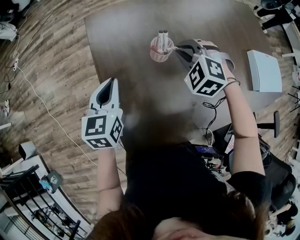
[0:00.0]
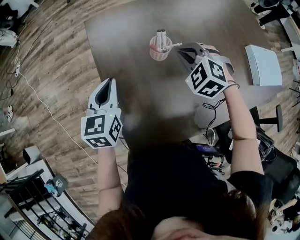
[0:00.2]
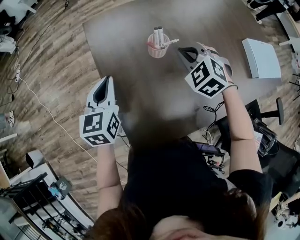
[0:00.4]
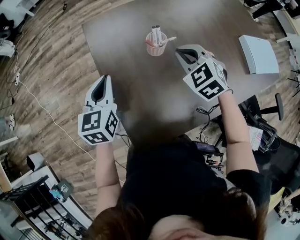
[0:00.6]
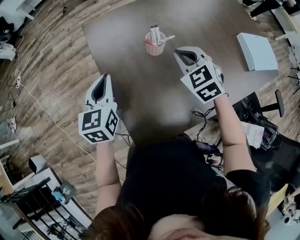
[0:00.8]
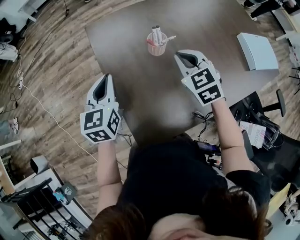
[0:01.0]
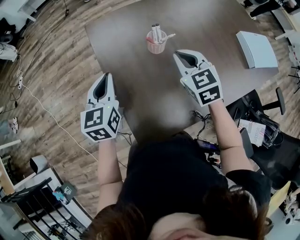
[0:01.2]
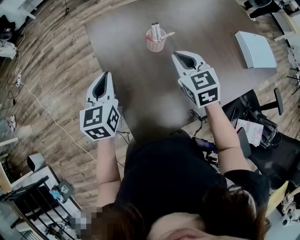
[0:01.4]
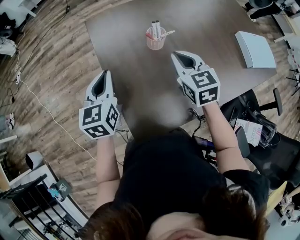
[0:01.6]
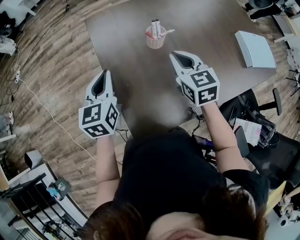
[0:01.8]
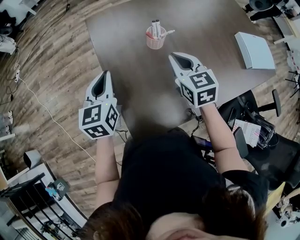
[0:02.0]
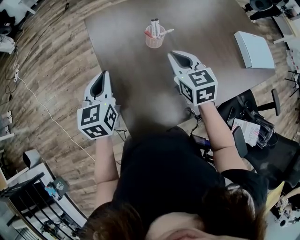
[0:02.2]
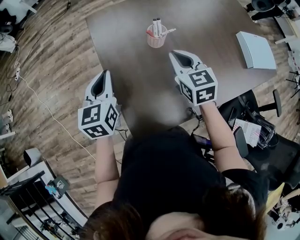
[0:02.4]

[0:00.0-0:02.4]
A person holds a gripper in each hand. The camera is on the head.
0:00.0 to 0:01.2: The left gripper shifts by roughly 5 cm. Meanwhile the right gripper goes roughly 10 cm backward and upward, and rolls clockwise, seen from behind, by some 50 degrees.
0:01.2 to 0:02.4: The grippers stay close to where they were, moving slightly.

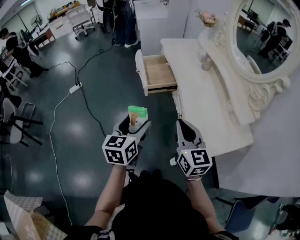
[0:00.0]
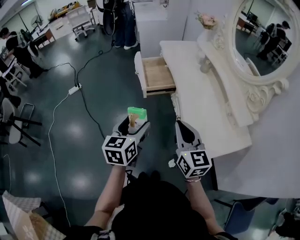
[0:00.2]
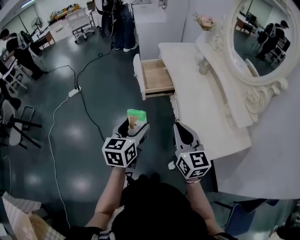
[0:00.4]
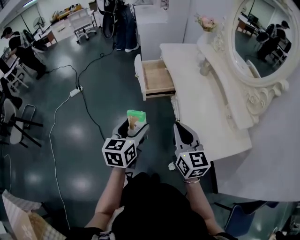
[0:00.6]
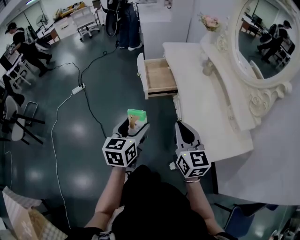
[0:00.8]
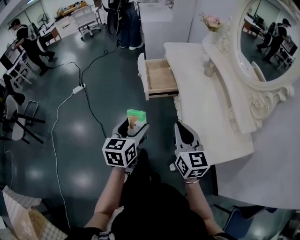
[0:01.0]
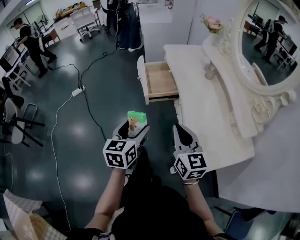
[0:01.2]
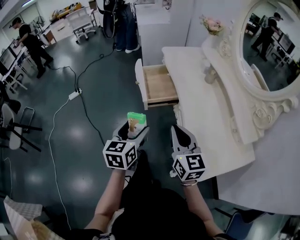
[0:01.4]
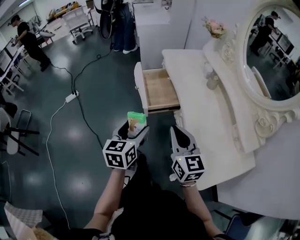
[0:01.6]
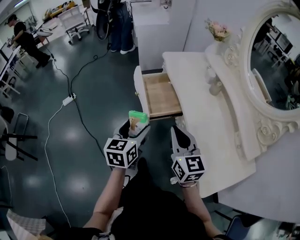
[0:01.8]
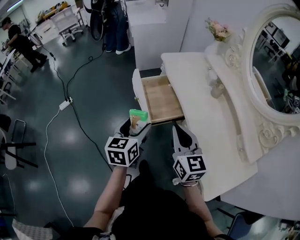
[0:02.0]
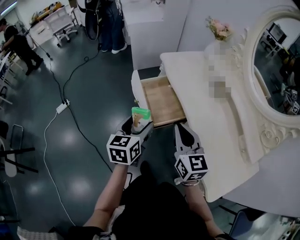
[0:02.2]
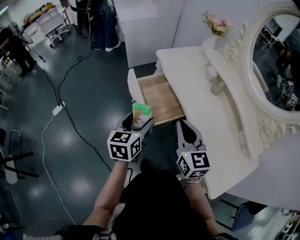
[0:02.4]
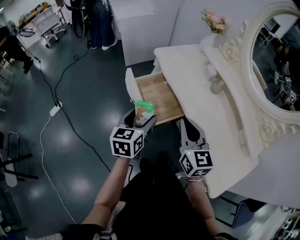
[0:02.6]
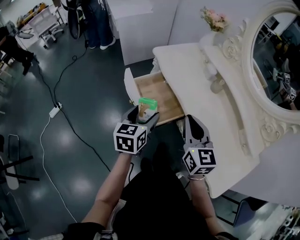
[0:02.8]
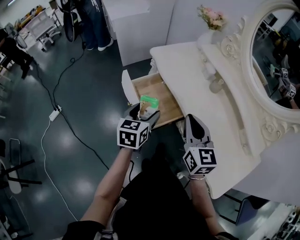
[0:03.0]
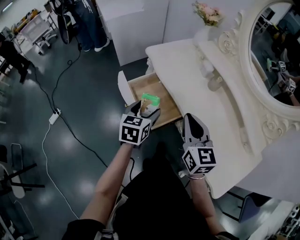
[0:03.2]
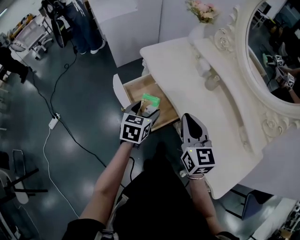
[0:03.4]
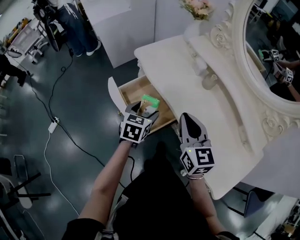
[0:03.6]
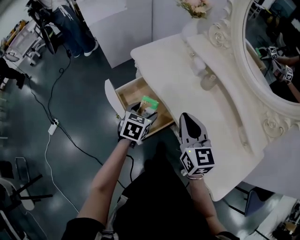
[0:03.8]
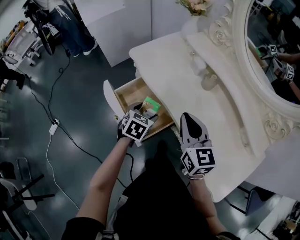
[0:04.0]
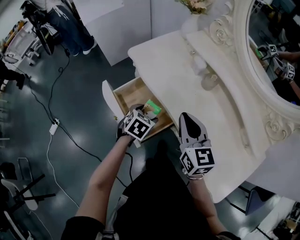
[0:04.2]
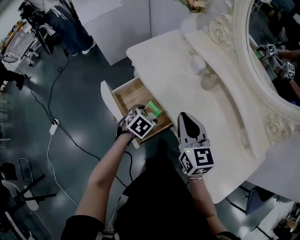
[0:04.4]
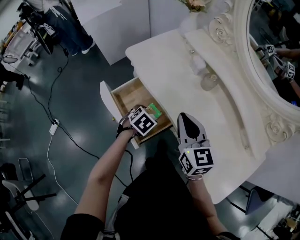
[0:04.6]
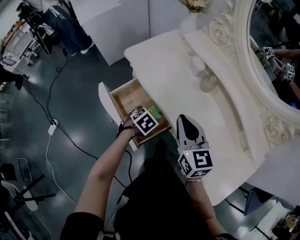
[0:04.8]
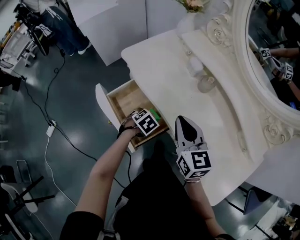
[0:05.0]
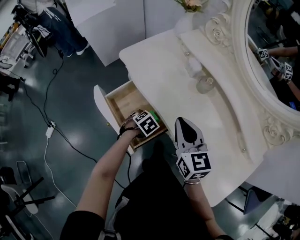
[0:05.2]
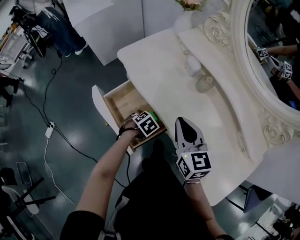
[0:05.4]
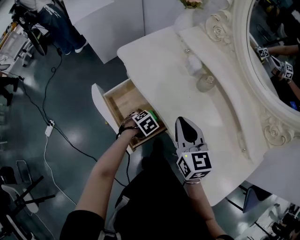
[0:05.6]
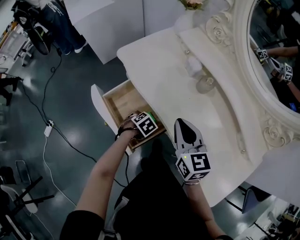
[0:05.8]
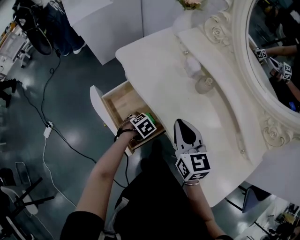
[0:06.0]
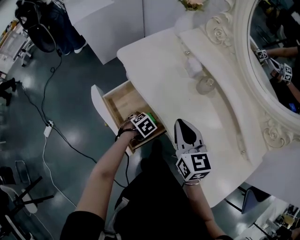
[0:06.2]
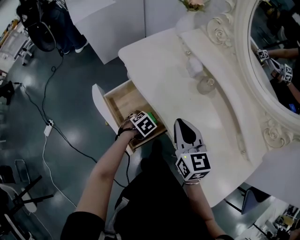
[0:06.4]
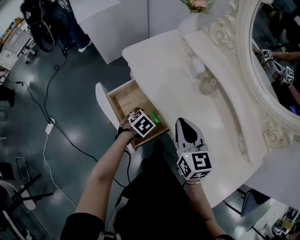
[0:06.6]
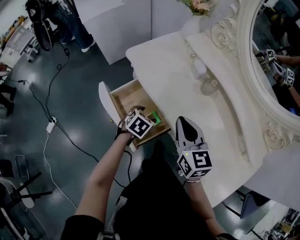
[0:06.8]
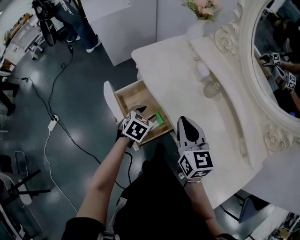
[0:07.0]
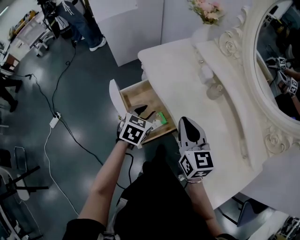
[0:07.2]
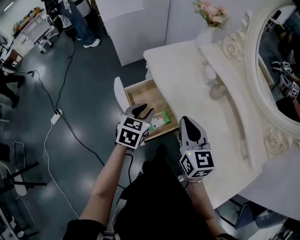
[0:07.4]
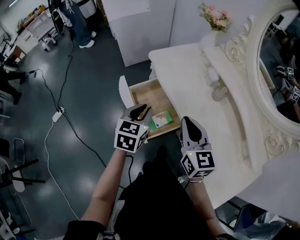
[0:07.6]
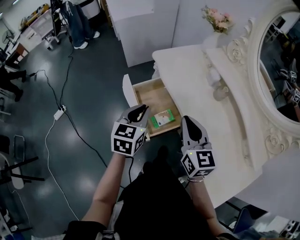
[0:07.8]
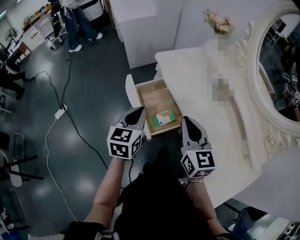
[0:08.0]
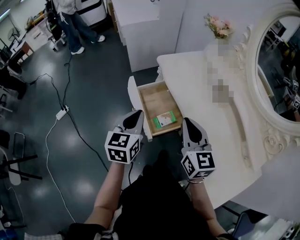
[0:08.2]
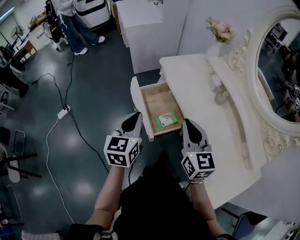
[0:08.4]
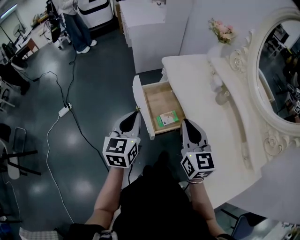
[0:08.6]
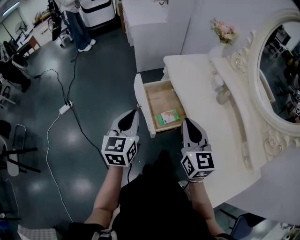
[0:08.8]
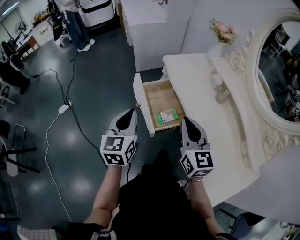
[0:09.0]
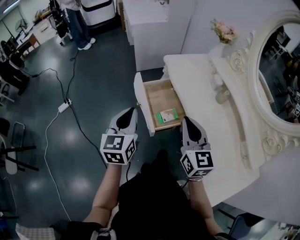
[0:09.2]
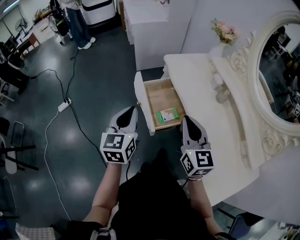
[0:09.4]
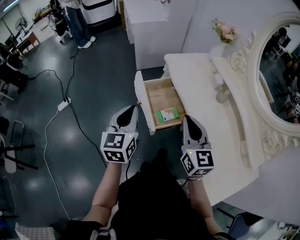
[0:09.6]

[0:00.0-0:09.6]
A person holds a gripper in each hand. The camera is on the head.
0:00.0 to 0:01.6: Both grippers travel together forward, approximately 15 cm.
0:01.6 to 0:03.2: The grippers both shift forward by some 20 cm. The right gripper turns by some 20 degrees. The left gripper swivels about 20 degrees.
0:03.2 to 0:04.8: The right gripper shifts some 10 cm forward; the left gripper moves downward and to the right, about 20 cm, and tips its fingers downward by roughly 40 degrees.
0:04.8 to 0:06.4: The left gripper heads downward, covering about 5 cm.
0:06.4 to 0:08.0: The right gripper ends up roughly 10 cm from where it was. The left gripper shifts about 30 cm upward, tips its fingers upward by roughly 50 degrees, and closes its fingers.
0:08.0 to 0:09.6: The right gripper changes place by some 5 cm. Meanwhile the left gripper shifts some 10 cm to the left and backward.

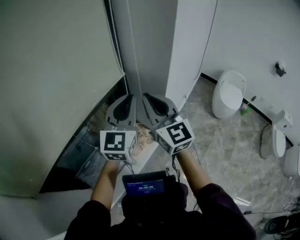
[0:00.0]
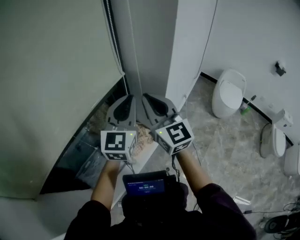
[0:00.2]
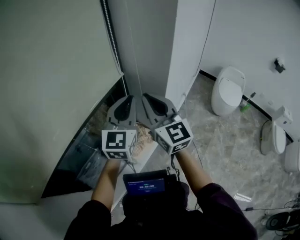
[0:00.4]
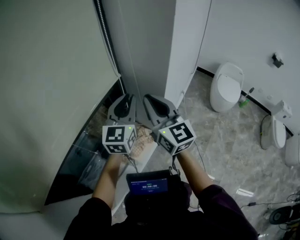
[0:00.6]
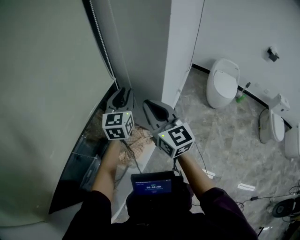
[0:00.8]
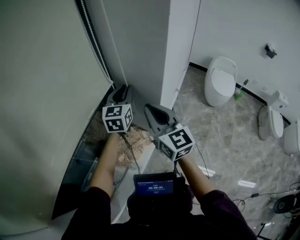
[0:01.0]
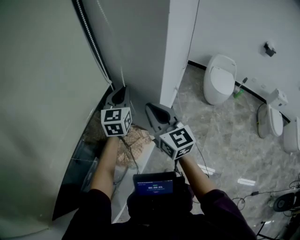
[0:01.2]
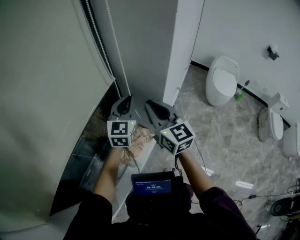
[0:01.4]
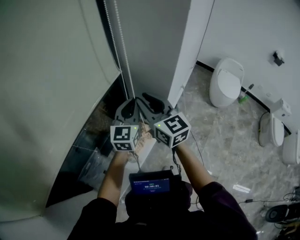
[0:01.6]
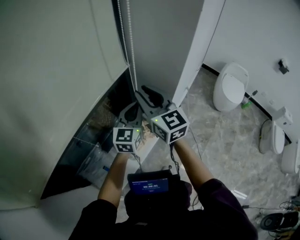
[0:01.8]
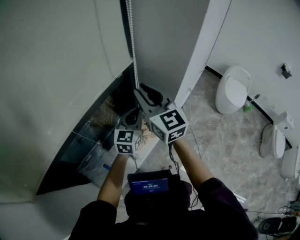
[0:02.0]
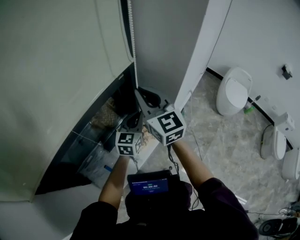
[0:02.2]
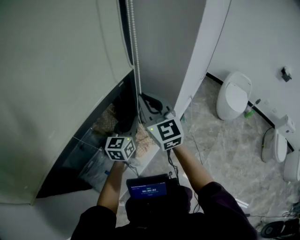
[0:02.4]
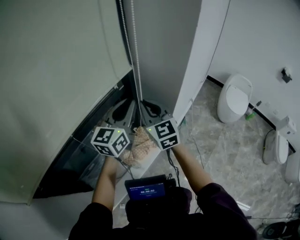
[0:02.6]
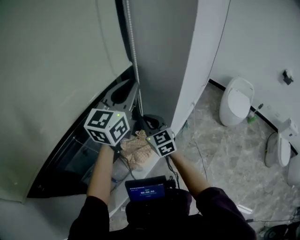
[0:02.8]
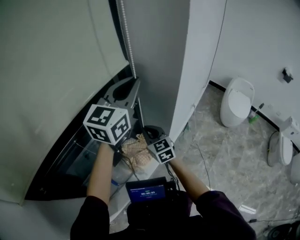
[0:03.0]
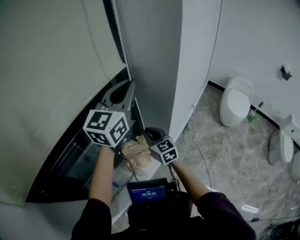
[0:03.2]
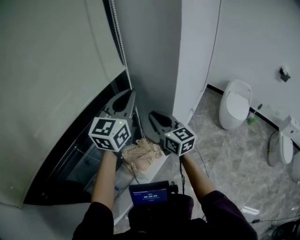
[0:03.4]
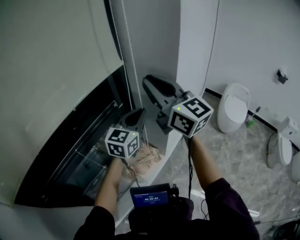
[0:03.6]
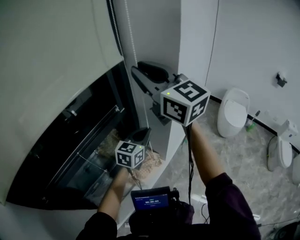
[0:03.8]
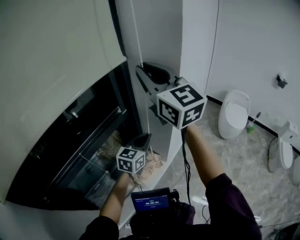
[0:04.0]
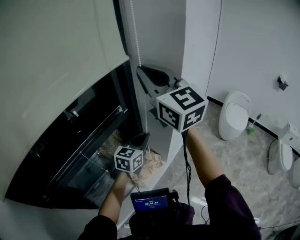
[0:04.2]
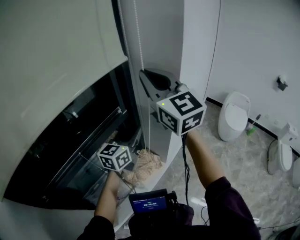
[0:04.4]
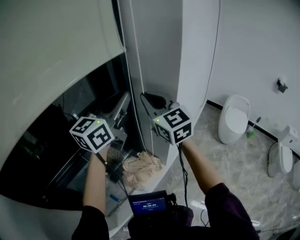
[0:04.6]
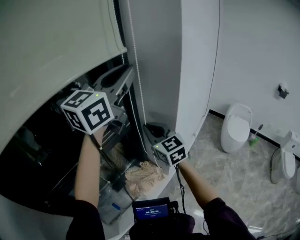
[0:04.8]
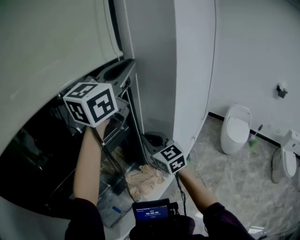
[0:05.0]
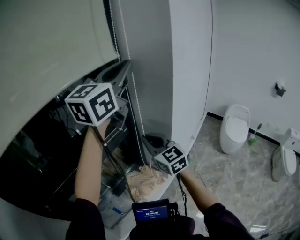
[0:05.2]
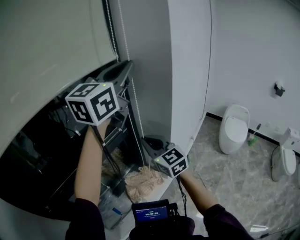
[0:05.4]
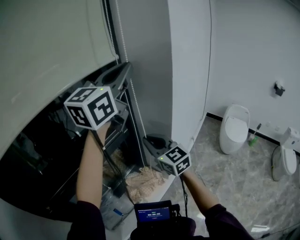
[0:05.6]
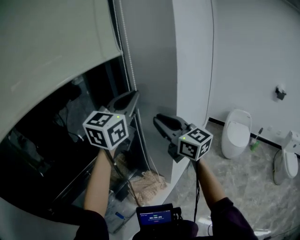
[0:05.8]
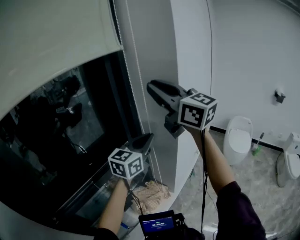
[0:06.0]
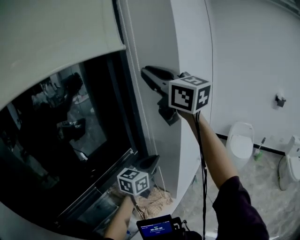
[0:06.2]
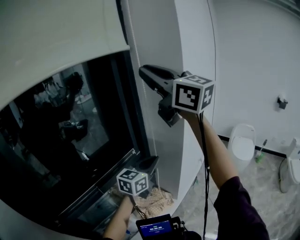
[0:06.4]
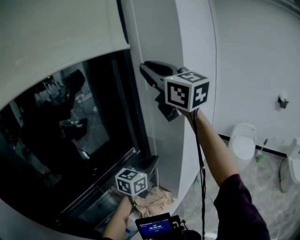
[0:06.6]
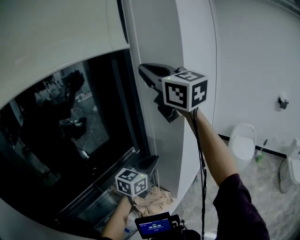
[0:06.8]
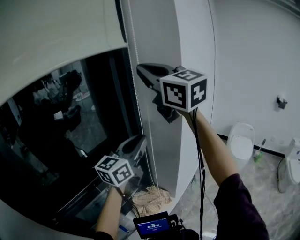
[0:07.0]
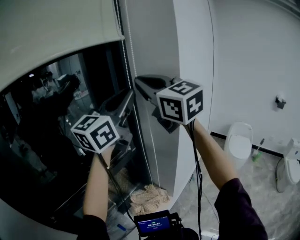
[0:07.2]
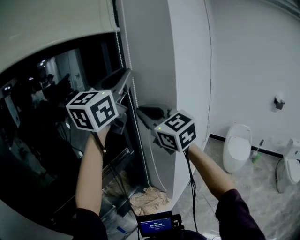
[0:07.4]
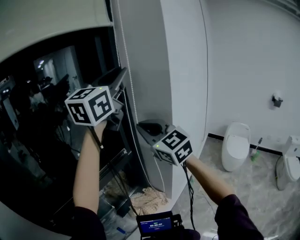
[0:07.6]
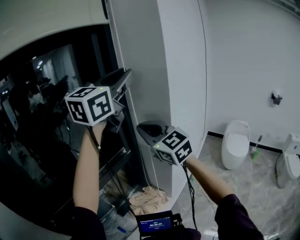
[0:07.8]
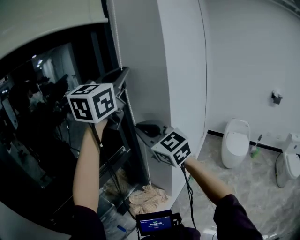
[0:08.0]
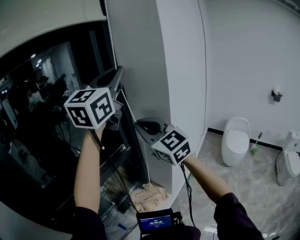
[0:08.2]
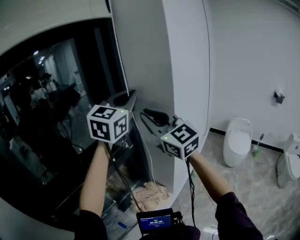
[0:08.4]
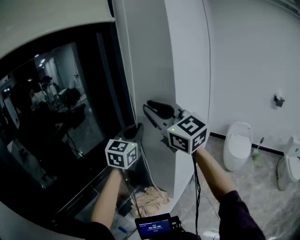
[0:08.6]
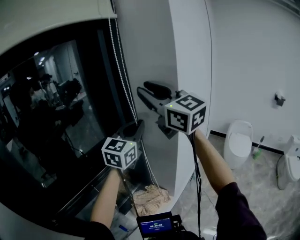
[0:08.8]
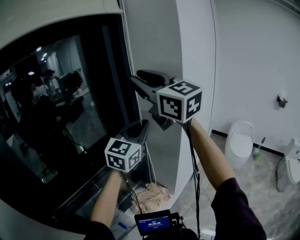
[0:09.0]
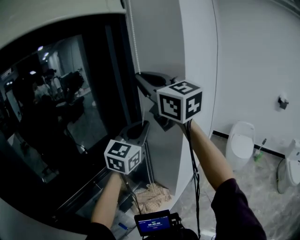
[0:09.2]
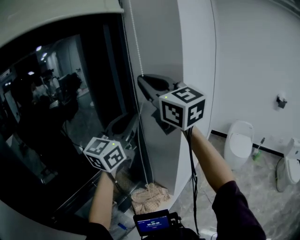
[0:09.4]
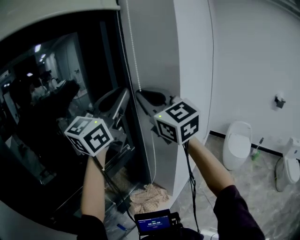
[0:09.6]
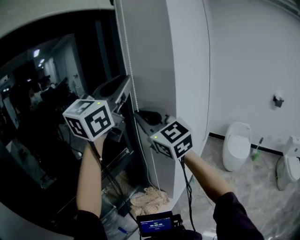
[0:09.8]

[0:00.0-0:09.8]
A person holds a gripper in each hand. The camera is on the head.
0:00.0 to 0:01.4: The right gripper travels downward and forward by roughly 10 cm, while the left gripper goes some 15 cm downward and forward.
0:01.4 to 0:02.8: The left gripper heads upward, covering approximately 15 cm, while the right gripper goes some 10 cm to the left and downward, and rotates some 20 degrees.
0:02.8 to 0:04.2: The right gripper moves upward, approximately 35 cm, and turns by approximately 30 degrees. The left gripper is displaced downward by about 20 cm.
0:04.2 to 0:05.6: The left gripper goes approximately 40 cm upward, and swivels approximately 30 degrees, while the right gripper moves downward, about 20 cm.
0:05.6 to 0:07.0: The left gripper moves downward, some 15 cm. The right gripper goes about 35 cm upward.
0:07.0 to 0:08.4: The right gripper travels downward by some 15 cm. The left gripper moves upward and forward, approximately 15 cm, and rotates approximately 30 degrees.
0:08.4 to 0:09.8: The right gripper moves about 15 cm upward and comes back. Meanwhile the left gripper moves upward, approximately 10 cm.

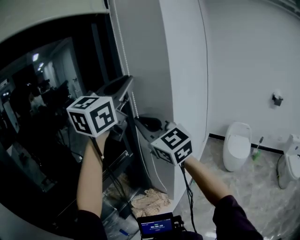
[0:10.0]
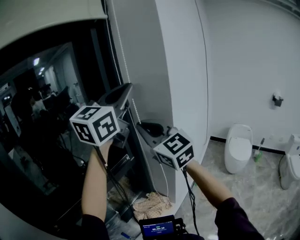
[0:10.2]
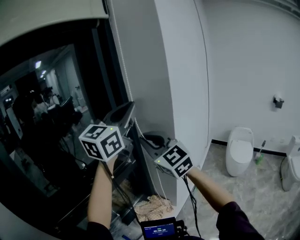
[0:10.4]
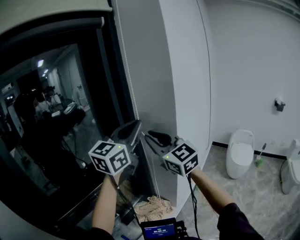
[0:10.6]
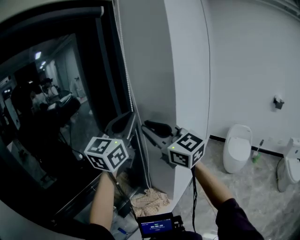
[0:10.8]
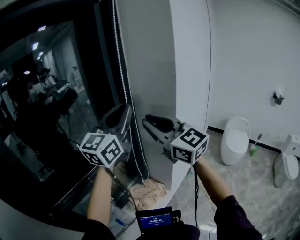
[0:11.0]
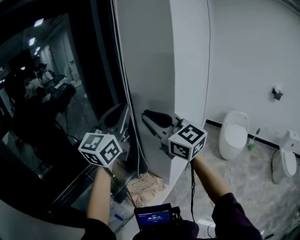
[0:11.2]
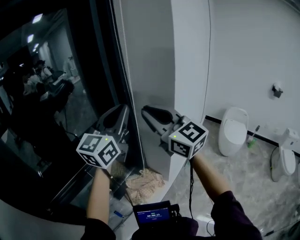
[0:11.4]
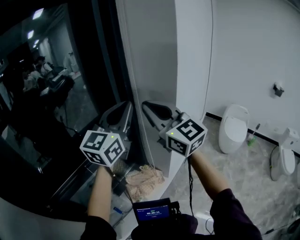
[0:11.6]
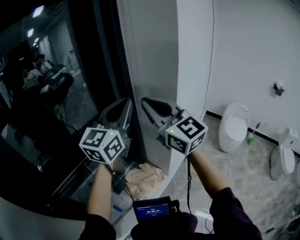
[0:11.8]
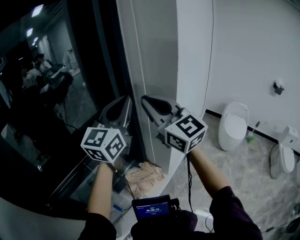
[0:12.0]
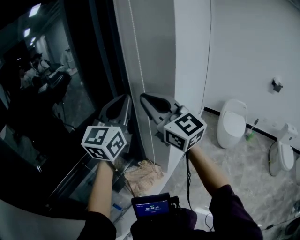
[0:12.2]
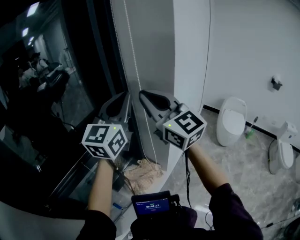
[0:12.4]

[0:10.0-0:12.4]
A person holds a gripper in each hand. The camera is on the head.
0:10.0 to 0:11.2: The right gripper heads downward, covering approximately 5 cm. Meanwhile the left gripper travels downward by some 15 cm.
0:11.2 to 0:12.4: The grippers move only a little.
